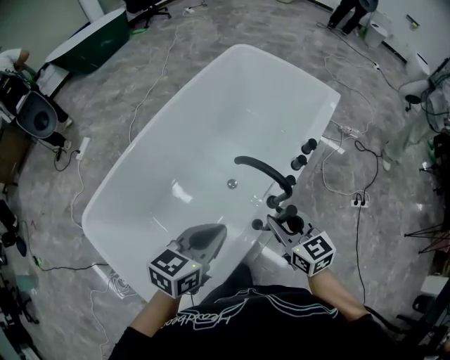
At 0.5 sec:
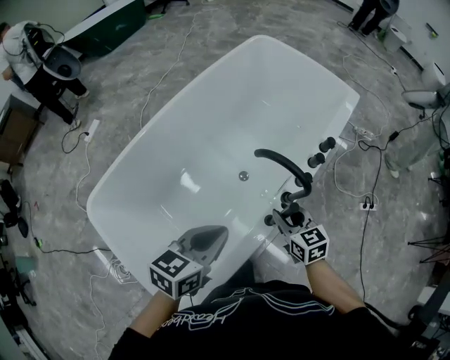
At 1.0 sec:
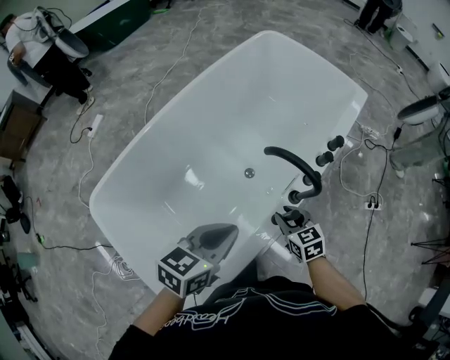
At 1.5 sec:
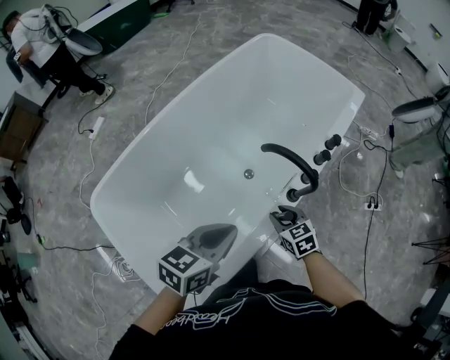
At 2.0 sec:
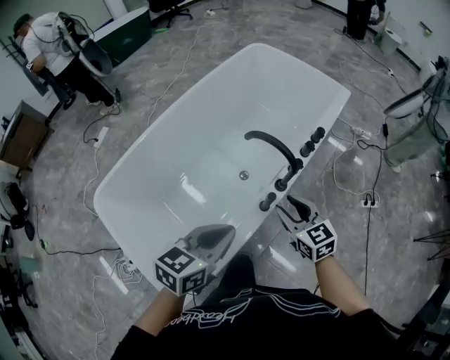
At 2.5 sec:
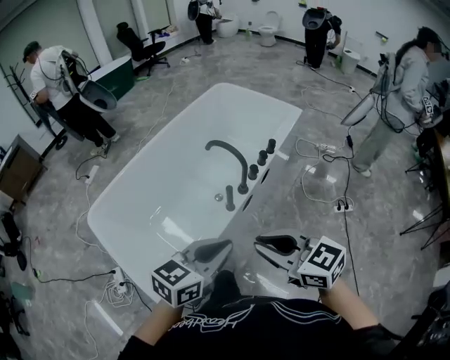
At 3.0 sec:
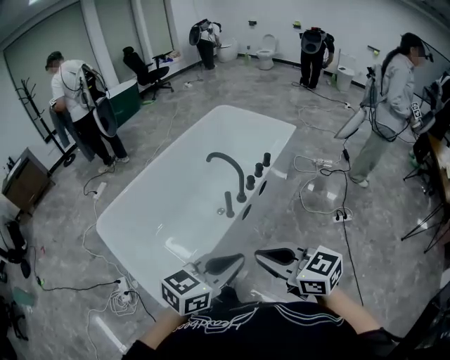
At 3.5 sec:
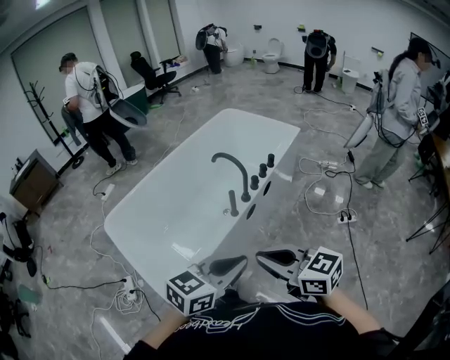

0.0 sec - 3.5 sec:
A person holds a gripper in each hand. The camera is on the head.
0.0 sec - 2.0 sec: The right gripper travels downward and back again, roughly 15 cm each way. The left gripper shifts about 10 cm backward.
2.0 sec - 3.5 sec: The left gripper heads backward, to the right and upward, covering about 30 cm; the right gripper moves backward and upward, some 35 cm, changes its angle by roughly 30 degrees, and closes up.

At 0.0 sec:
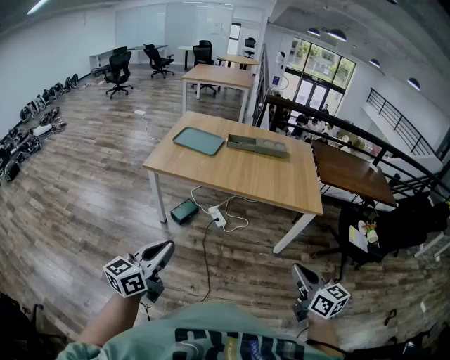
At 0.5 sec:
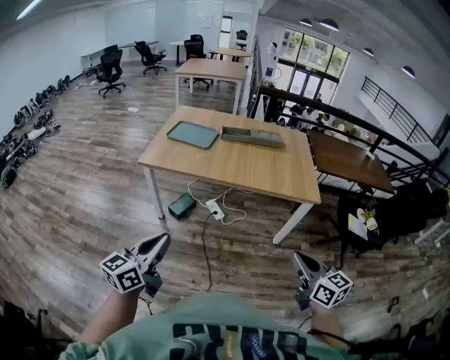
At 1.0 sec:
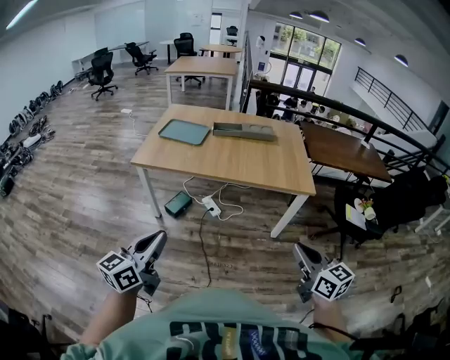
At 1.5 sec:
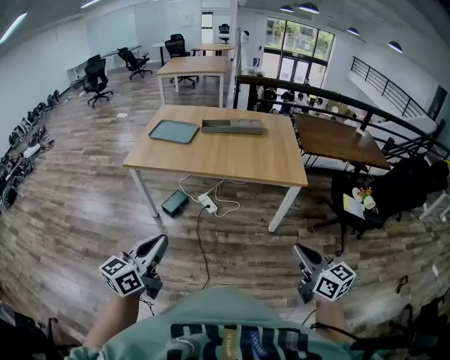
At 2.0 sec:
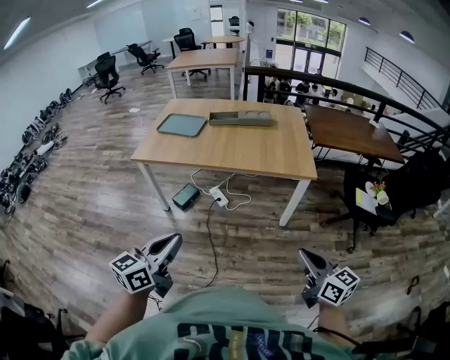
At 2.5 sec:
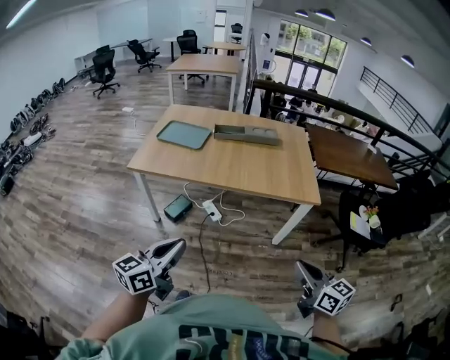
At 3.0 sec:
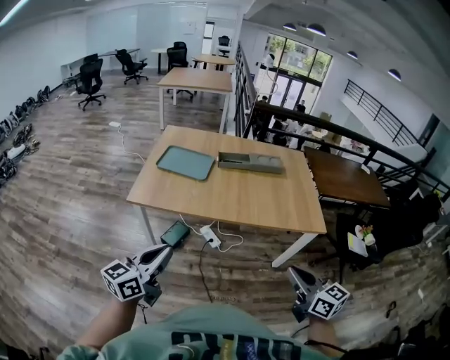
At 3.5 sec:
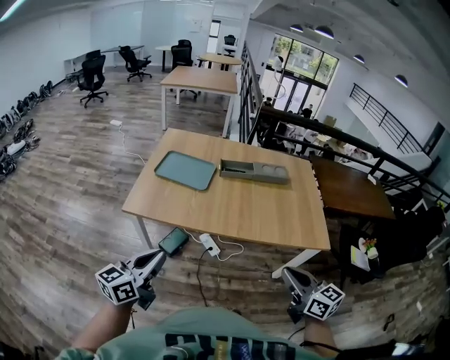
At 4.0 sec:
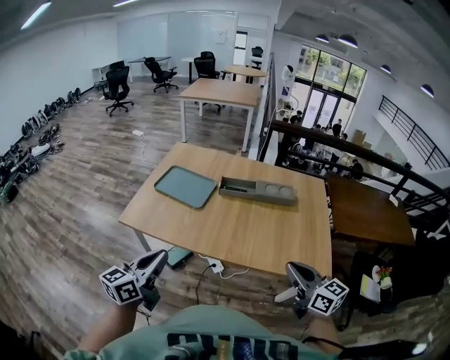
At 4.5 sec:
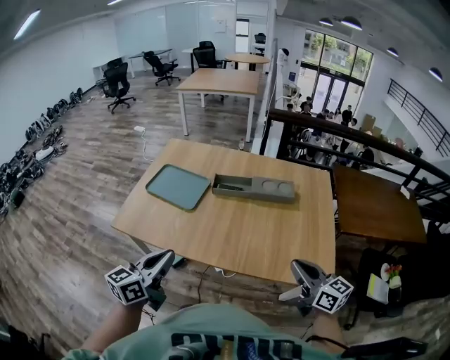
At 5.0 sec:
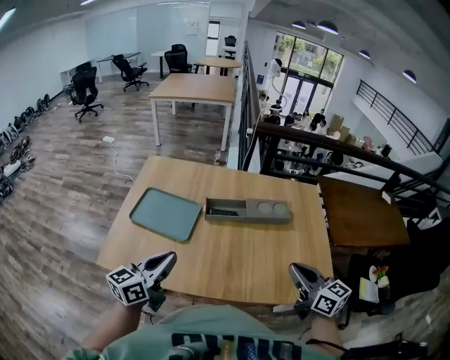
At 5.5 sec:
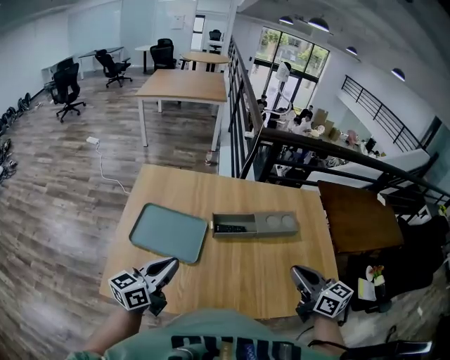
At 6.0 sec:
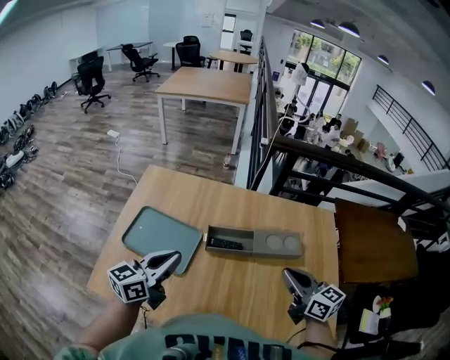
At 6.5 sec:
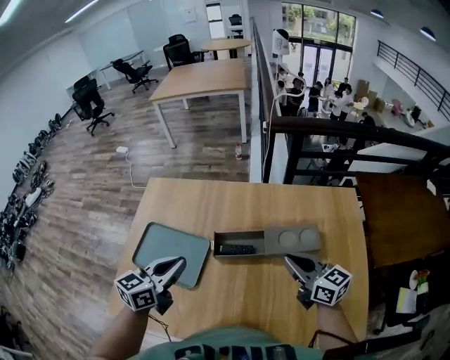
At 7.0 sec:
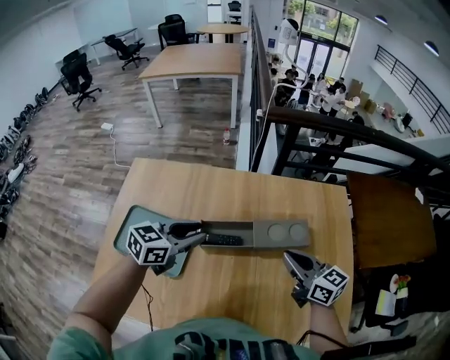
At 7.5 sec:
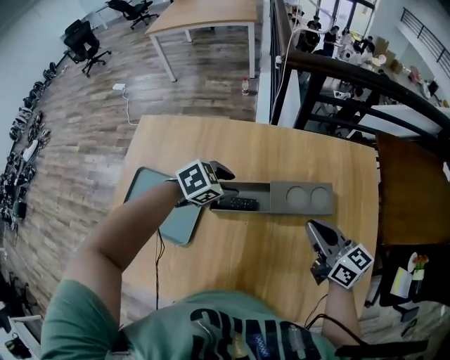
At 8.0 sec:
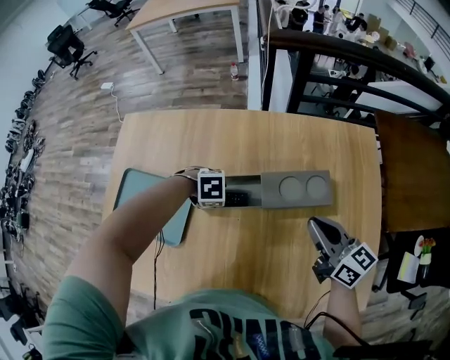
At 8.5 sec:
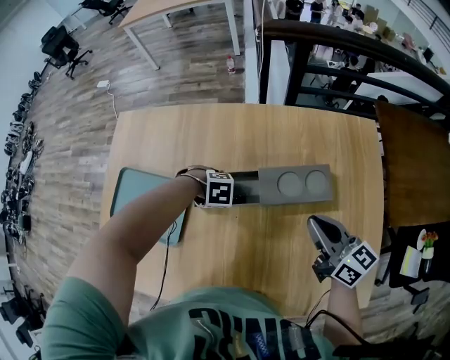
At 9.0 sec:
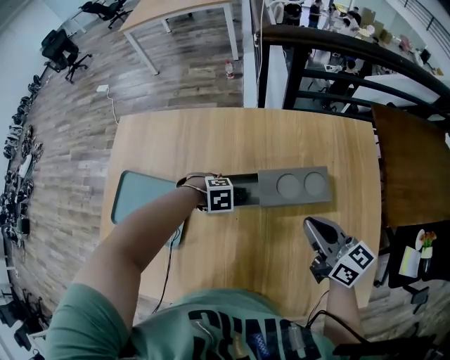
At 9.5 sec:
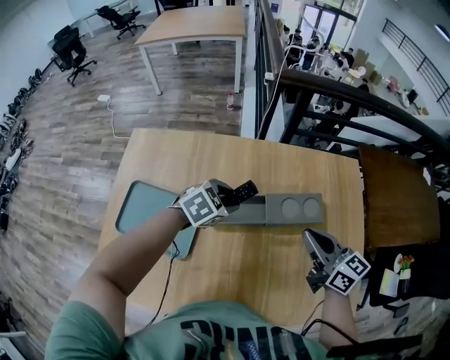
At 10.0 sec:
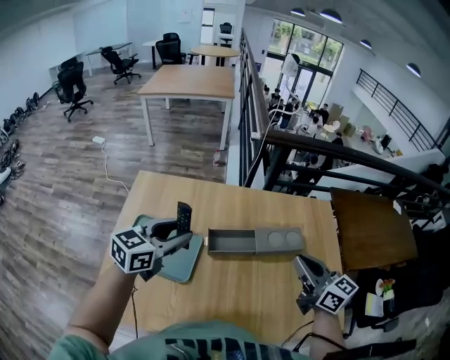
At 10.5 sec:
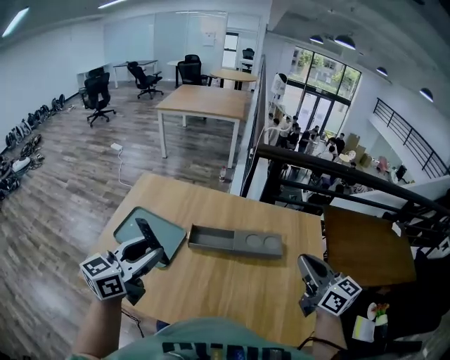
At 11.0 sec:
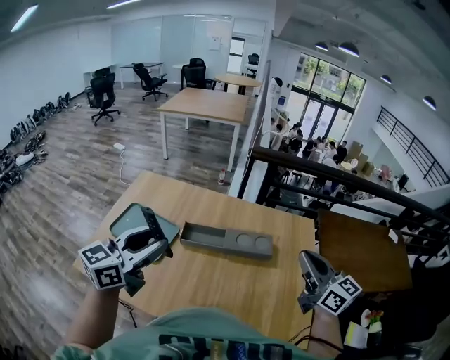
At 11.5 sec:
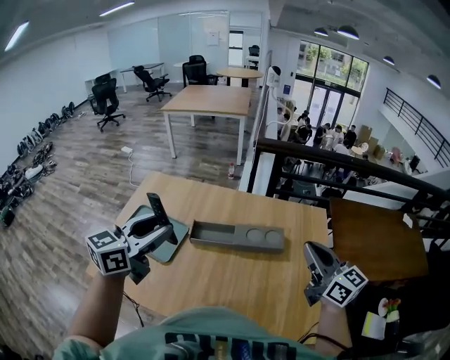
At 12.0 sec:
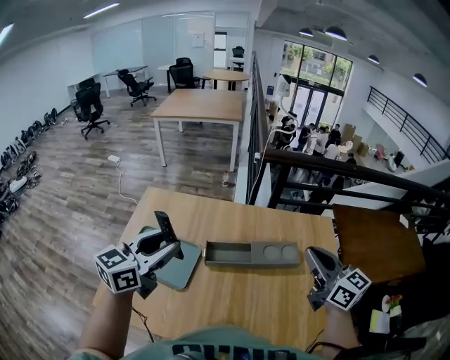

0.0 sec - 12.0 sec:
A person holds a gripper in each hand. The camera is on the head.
0.0 sec - 2.0 sec: Both grippers move to the right, roughly 15 cm.
2.0 sec - 4.0 sec: Both grippers are carried forward, about 40 cm.
4.0 sec - 6.0 sec: Both grippers travel together forward, about 40 cm.
6.0 sec - 8.0 sec: The left gripper moves downward, approximately 30 cm, angles its fingers downward, by roughly 70 degrees, and opens. Meanwhile the right gripper moves some 15 cm.
8.0 sec - 10.0 sec: The right gripper travels upward by approximately 15 cm. The left gripper shifts about 35 cm upward, and tilts its fingers some 60 degrees upward.
10.0 sec - 12.0 sec: The right gripper is displaced upward by roughly 5 cm, and goes to the right and returns, about 20 cm each way. The left gripper is displaced upward and backward by some 10 cm.

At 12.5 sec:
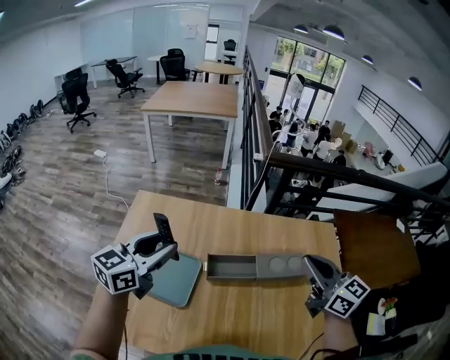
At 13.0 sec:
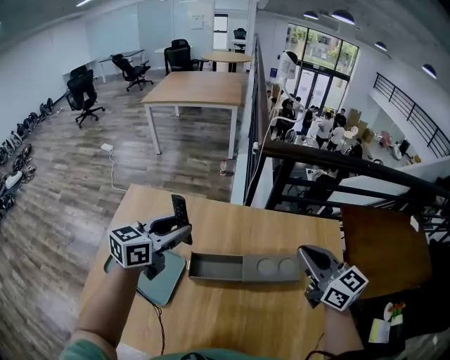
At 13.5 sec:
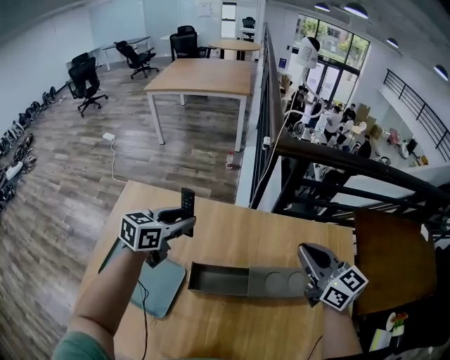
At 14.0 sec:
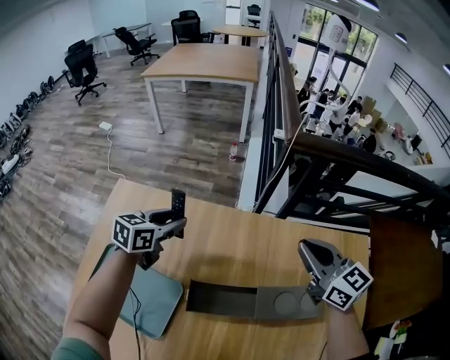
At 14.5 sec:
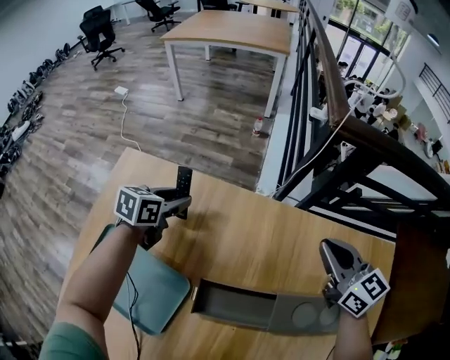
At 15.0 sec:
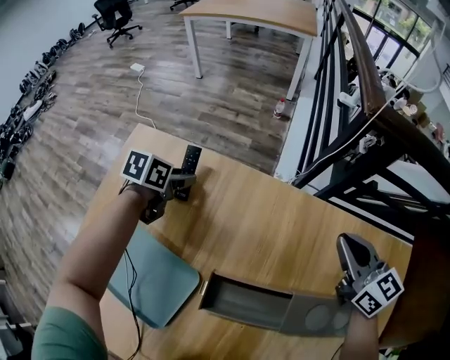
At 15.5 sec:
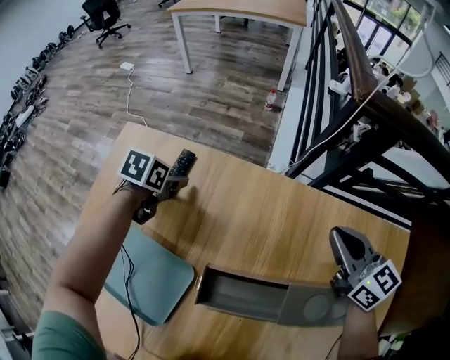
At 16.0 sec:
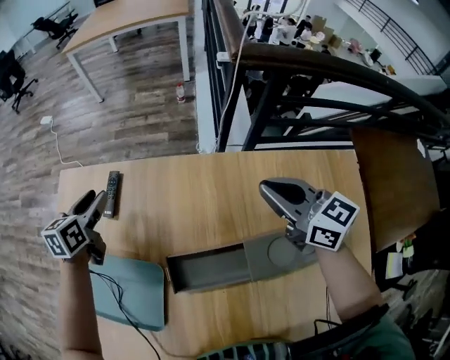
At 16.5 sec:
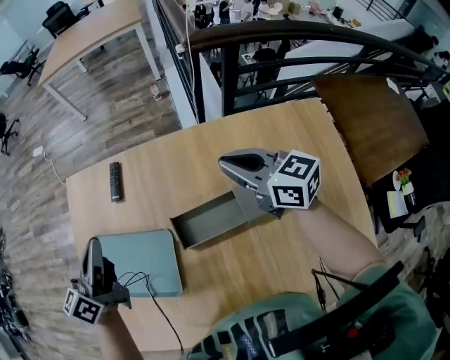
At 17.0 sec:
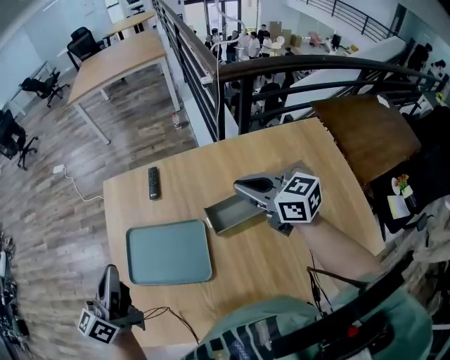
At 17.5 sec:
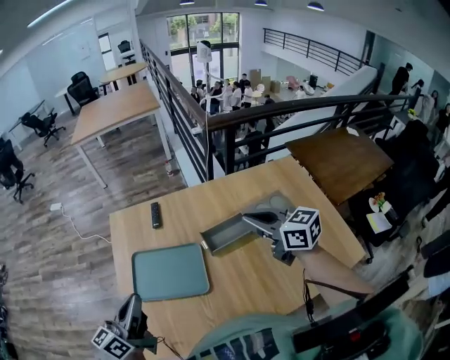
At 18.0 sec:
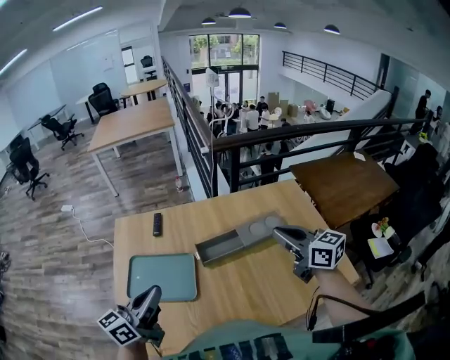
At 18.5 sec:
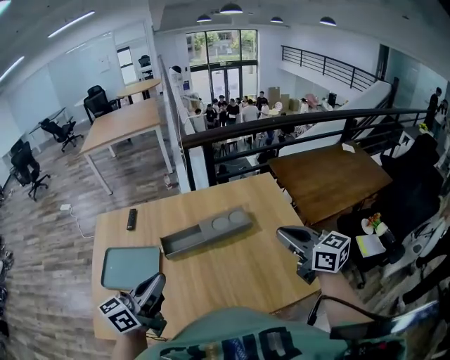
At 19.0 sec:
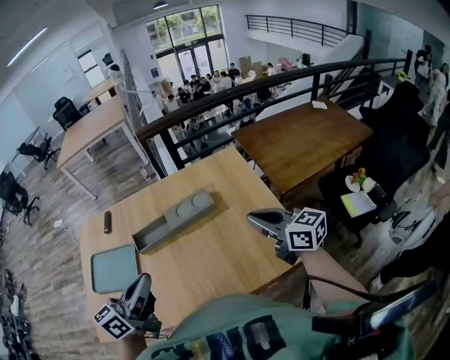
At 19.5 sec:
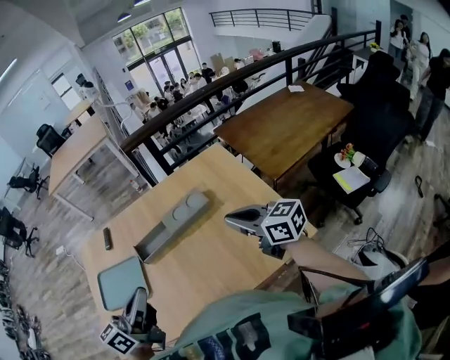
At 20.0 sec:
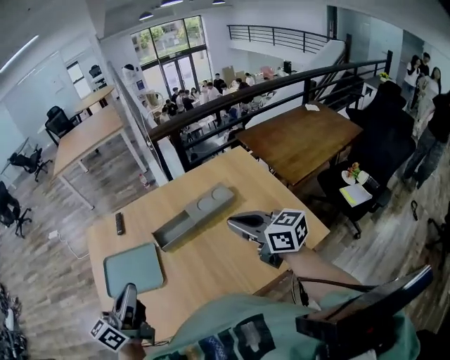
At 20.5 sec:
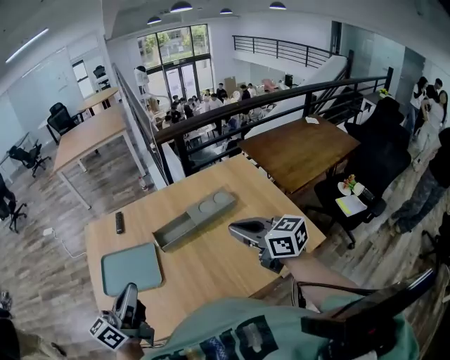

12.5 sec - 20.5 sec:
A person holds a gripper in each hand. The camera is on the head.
12.5 sec - 14.5 sec: The right gripper heads forward and downward, covering some 35 cm. Meanwhile the left gripper heads downward and forward, covering approximately 50 cm, and tilts its fingers about 30 degrees downward.
14.5 sec - 16.5 sec: The right gripper heads backward and to the left, covering roughly 10 cm. Meanwhile the left gripper is displaced backward and upward by about 25 cm, angles its fingers upward, by some 30 degrees, and closes.
16.5 sec - 18.5 sec: Both grippers travel together backward, to the right and upward, roughly 40 cm. The left gripper rotates some 30 degrees.
18.5 sec - 20.5 sec: The grippers both shift to the left by about 15 cm.

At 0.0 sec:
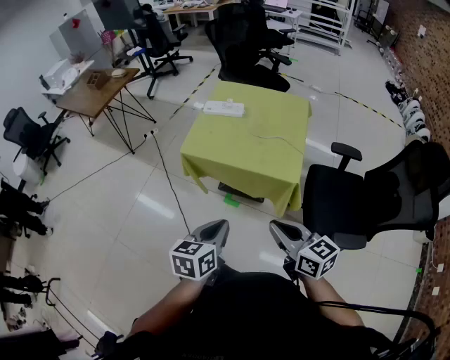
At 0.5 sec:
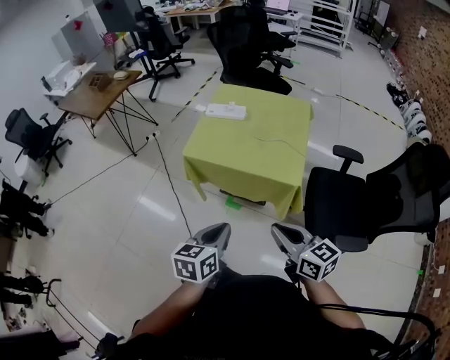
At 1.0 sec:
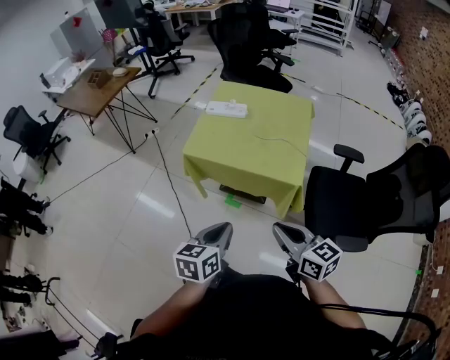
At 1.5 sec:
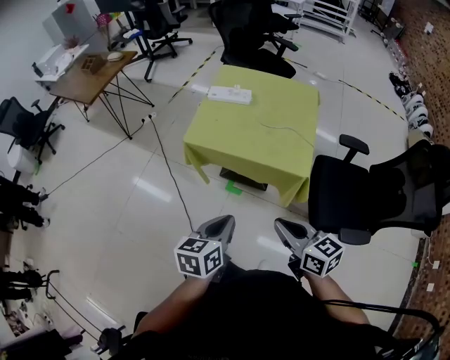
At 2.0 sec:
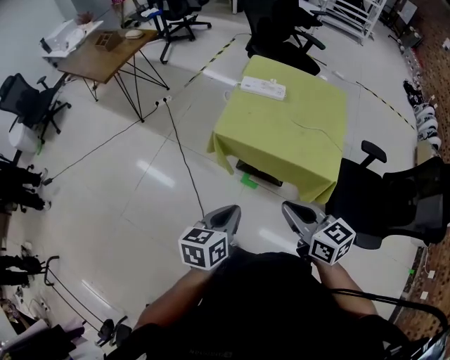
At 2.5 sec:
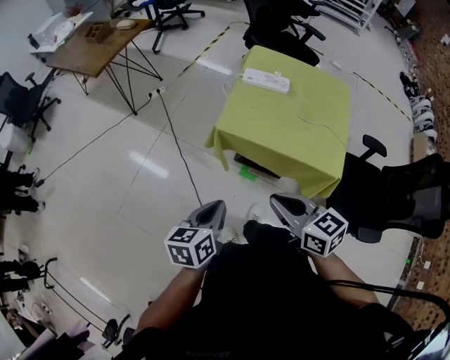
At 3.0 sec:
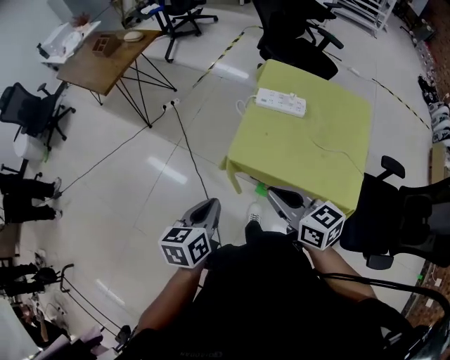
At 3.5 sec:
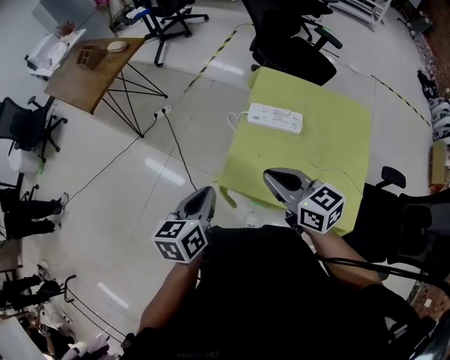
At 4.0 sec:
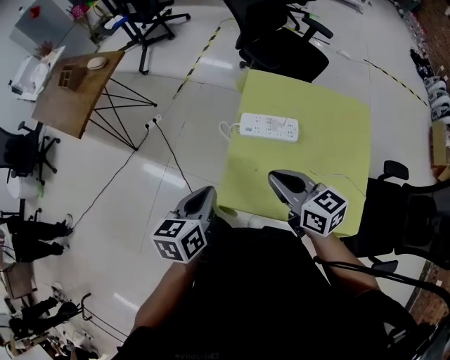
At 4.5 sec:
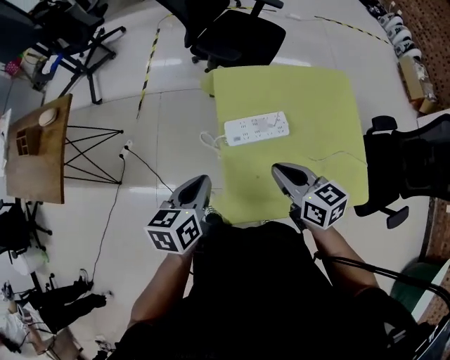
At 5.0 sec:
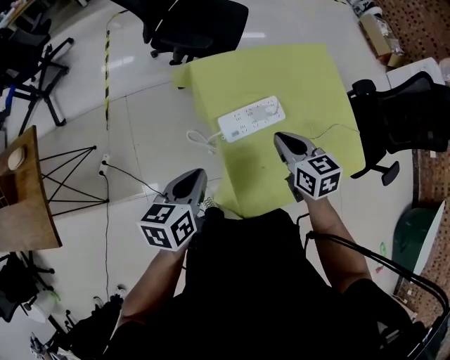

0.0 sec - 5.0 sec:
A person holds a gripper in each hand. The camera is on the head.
0.0 sec - 2.5 sec: The grippers both shift to the left and forward by approximately 25 cm.
2.5 sec - 5.0 sec: Both grippers are carried roughly 50 cm. The right gripper rotates approximately 50 degrees. Meanwhile the left gripper swivels roughly 40 degrees.
